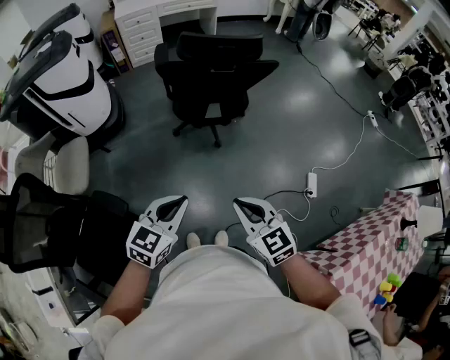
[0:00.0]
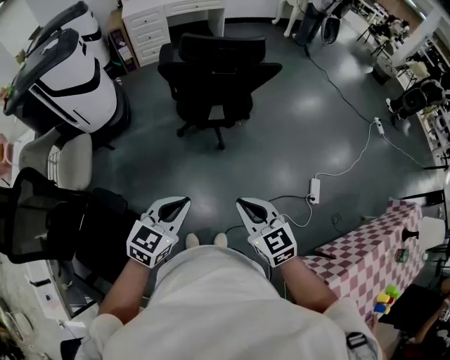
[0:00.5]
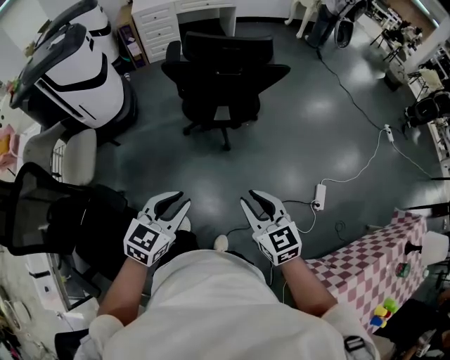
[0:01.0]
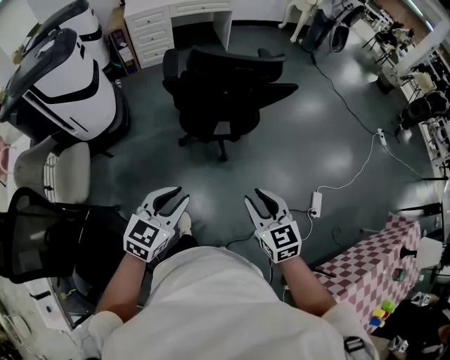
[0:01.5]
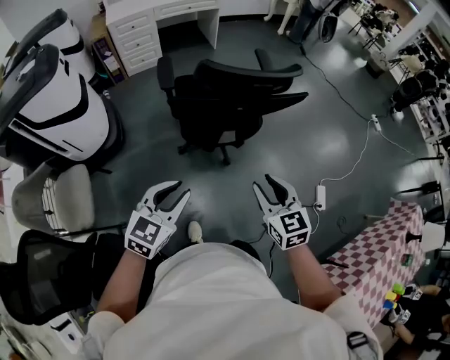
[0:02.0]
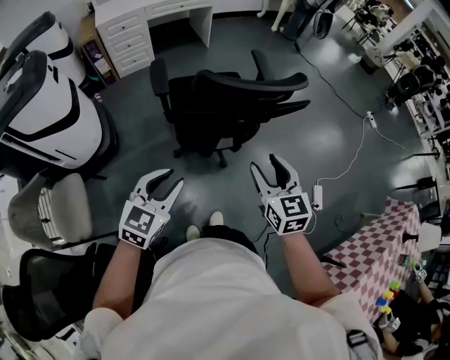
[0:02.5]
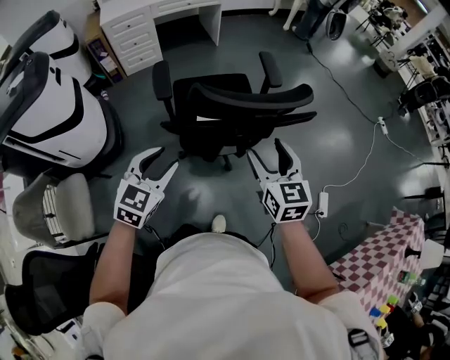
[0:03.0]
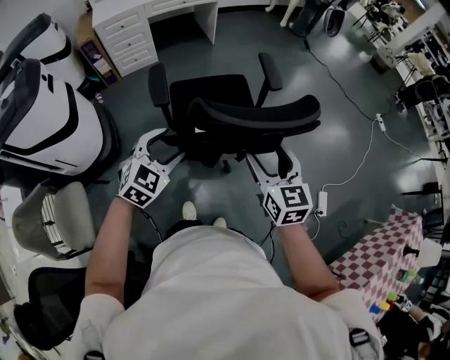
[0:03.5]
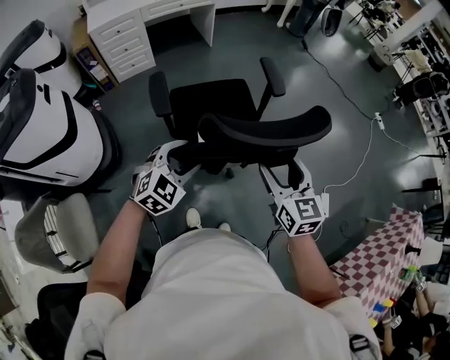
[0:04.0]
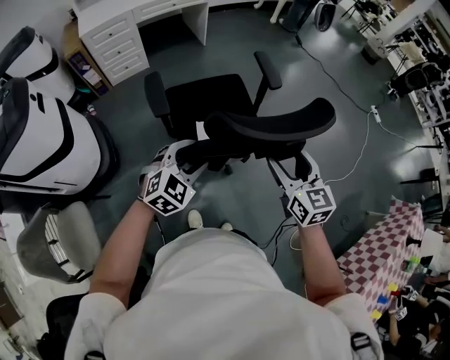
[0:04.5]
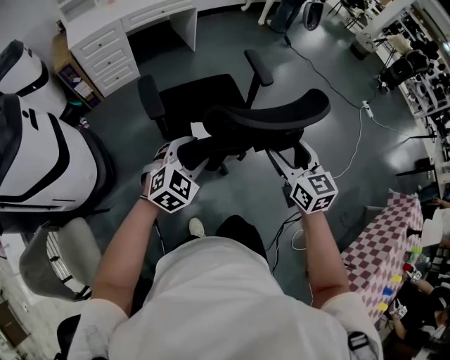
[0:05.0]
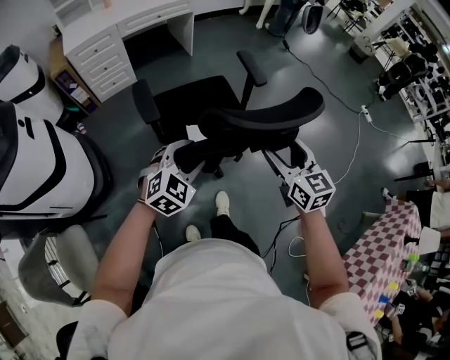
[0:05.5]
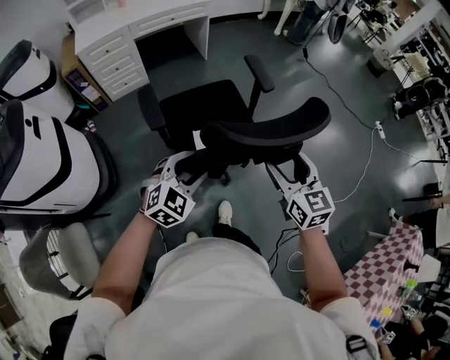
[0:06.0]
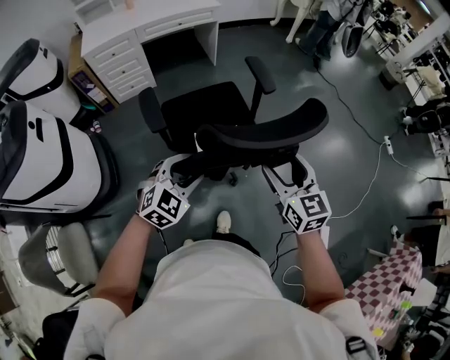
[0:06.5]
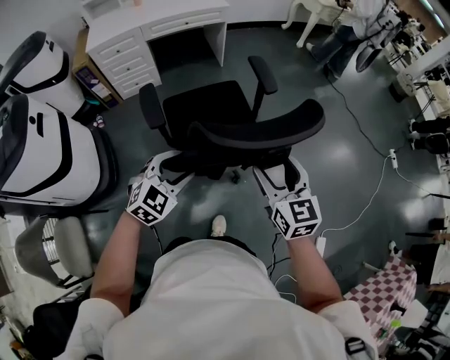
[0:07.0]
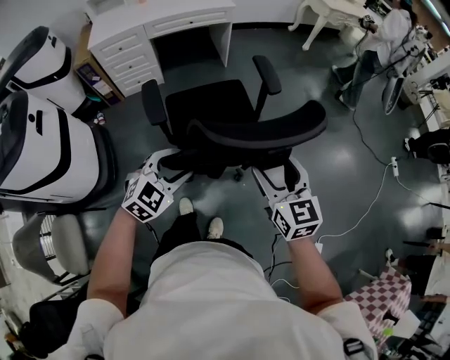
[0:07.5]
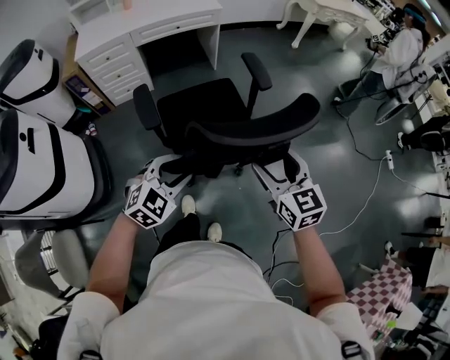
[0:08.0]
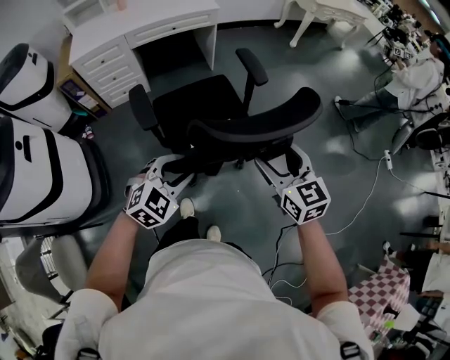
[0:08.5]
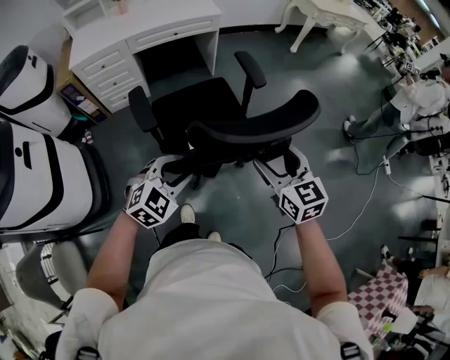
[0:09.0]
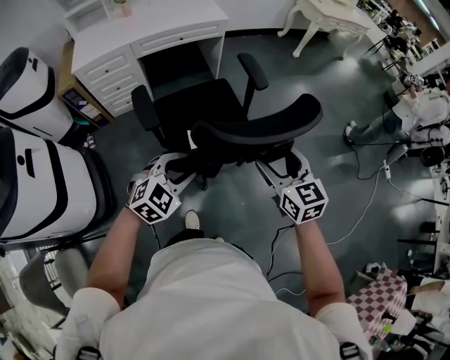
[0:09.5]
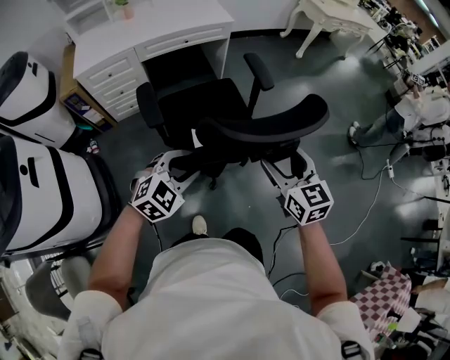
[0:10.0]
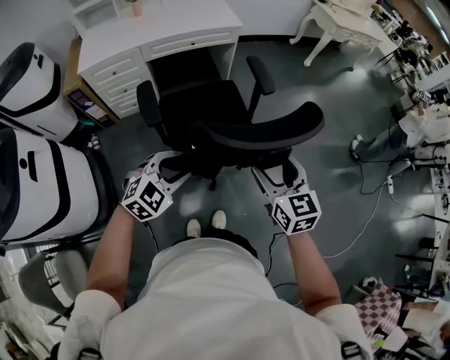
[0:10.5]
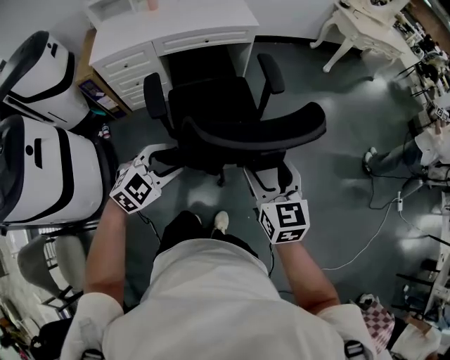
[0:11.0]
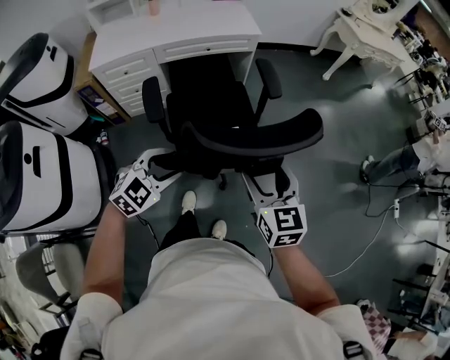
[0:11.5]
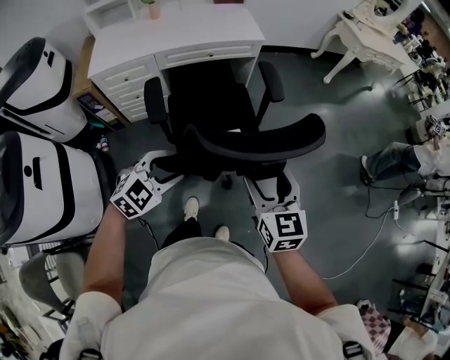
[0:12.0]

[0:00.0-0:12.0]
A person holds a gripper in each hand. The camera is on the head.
0:00.0 to 0:02.0: The left gripper shifts about 25 cm forward and to the left, and opens up. The right gripper shifts roughly 25 cm forward, and opens up.
0:02.0 to 0:04.0: Both grippers move forward, about 25 cm. The right gripper opens; the left gripper swivels approximately 30 degrees, and opens its fingers.
0:04.0 to 0:06.0: The grippers both shift forward by about 15 cm.
0:06.0 to 0:08.0: Both grippers travel together forward, some 15 cm.
0:08.0 to 0:10.0: Both grippers move forward and to the left, roughly 15 cm.
0:10.0 to 0:12.0: Both grippers move forward and to the left, about 15 cm.

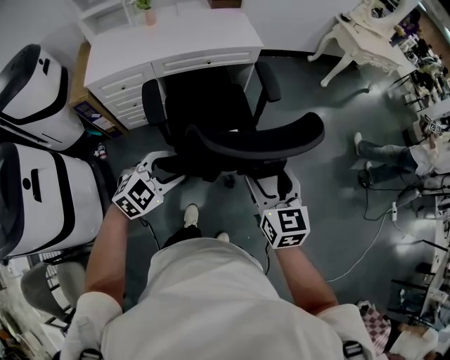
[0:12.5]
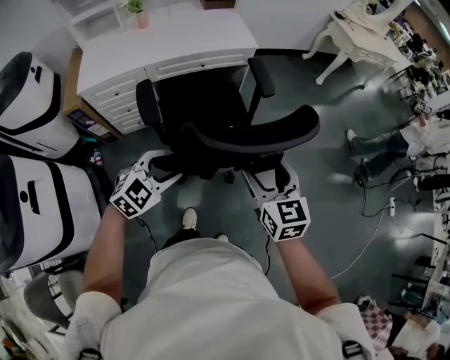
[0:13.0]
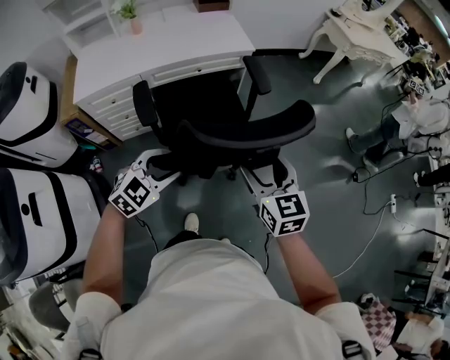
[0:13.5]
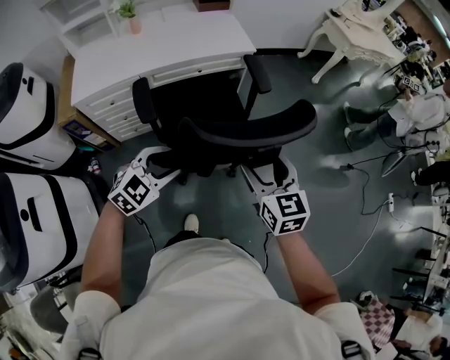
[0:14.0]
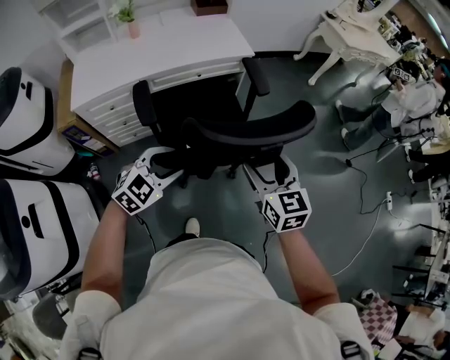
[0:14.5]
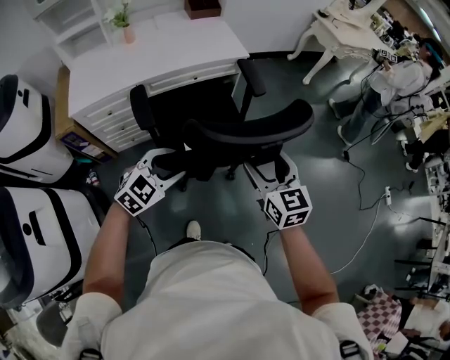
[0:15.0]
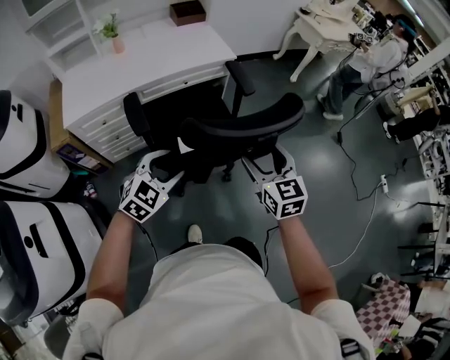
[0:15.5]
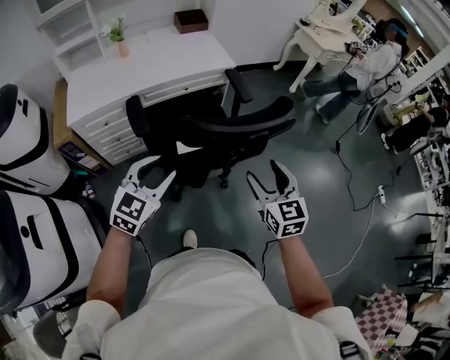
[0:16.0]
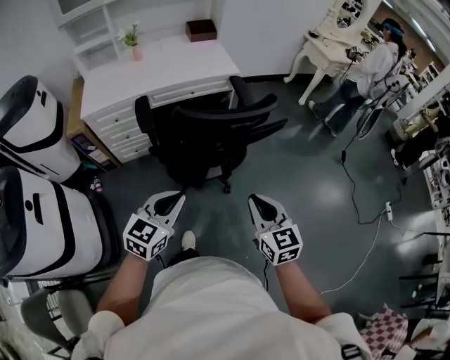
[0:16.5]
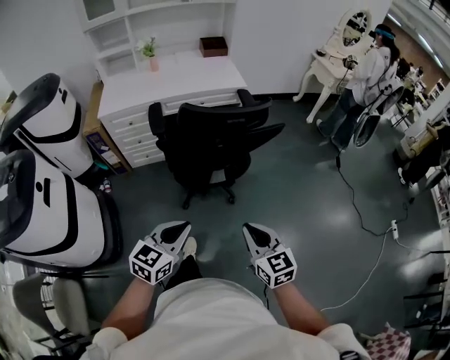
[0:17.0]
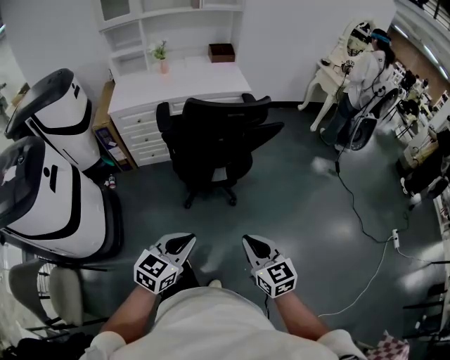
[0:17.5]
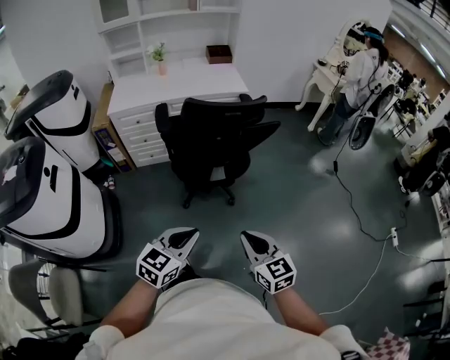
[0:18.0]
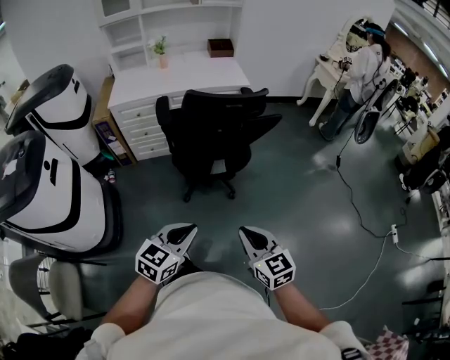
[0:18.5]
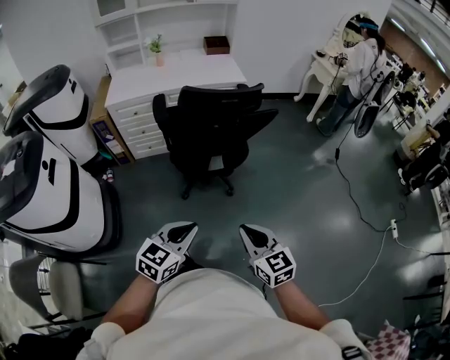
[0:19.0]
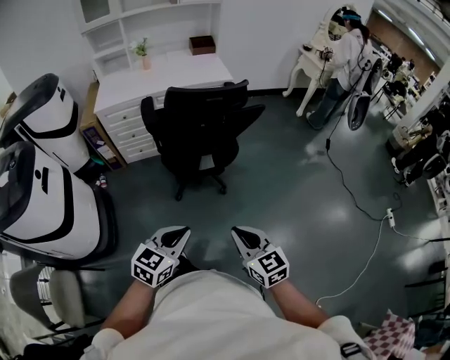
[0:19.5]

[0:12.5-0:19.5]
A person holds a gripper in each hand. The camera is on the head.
0:12.5 to 0:14.5: Both grippers move forward and to the left, some 10 cm.
0:14.5 to 0:16.0: The left gripper moves upward, roughly 5 cm, and rotates some 20 degrees, while the right gripper travels backward by roughly 5 cm.
0:16.0 to 0:17.5: The left gripper shifts roughly 35 cm backward and to the right, swivels about 20 degrees, and closes up. The right gripper goes roughly 30 cm backward, swivels some 20 degrees, and closes its fingers.
0:17.5 to 0:19.5: There are only small adjustments of the grippers.

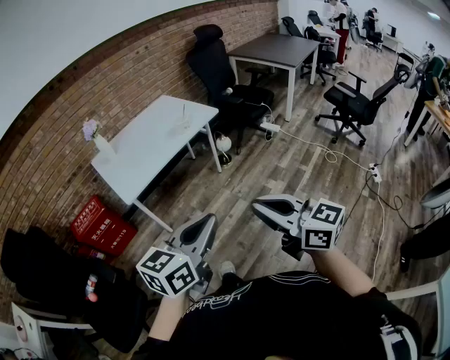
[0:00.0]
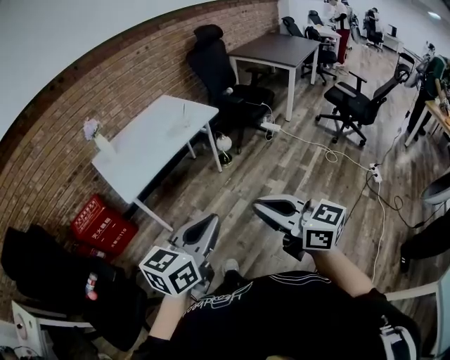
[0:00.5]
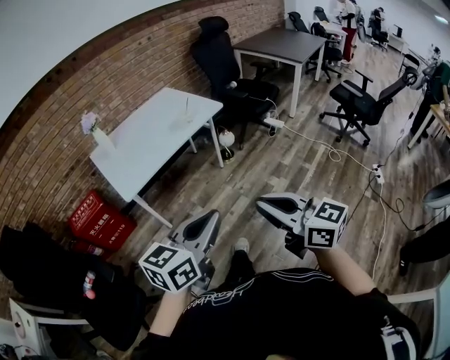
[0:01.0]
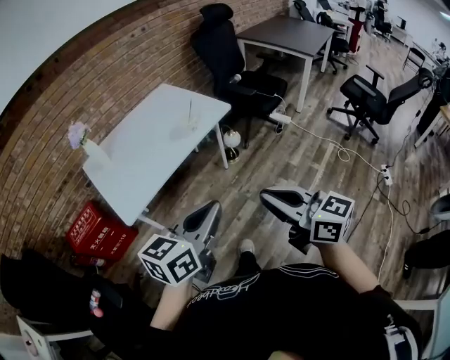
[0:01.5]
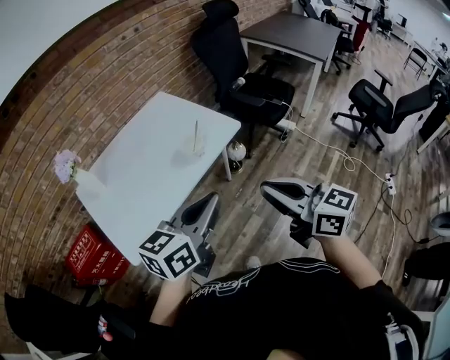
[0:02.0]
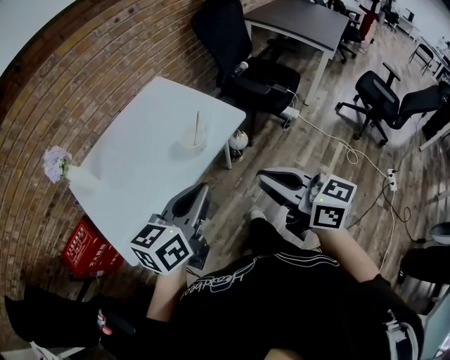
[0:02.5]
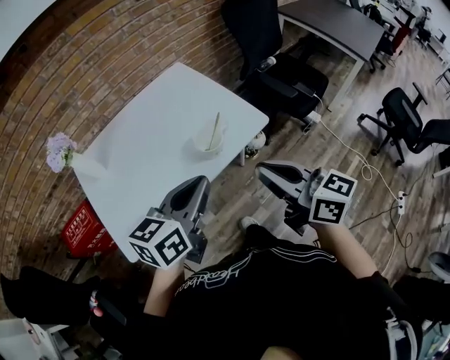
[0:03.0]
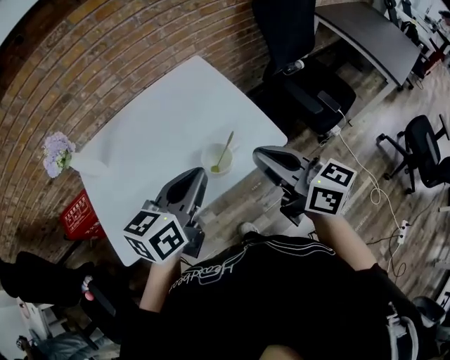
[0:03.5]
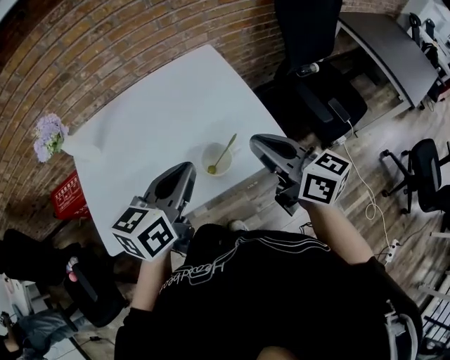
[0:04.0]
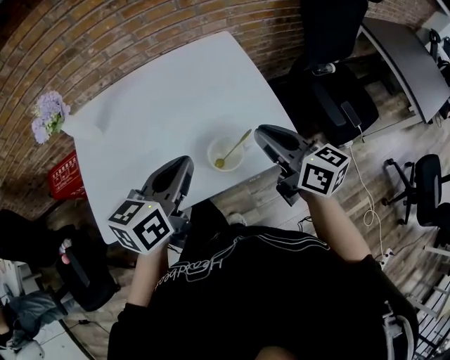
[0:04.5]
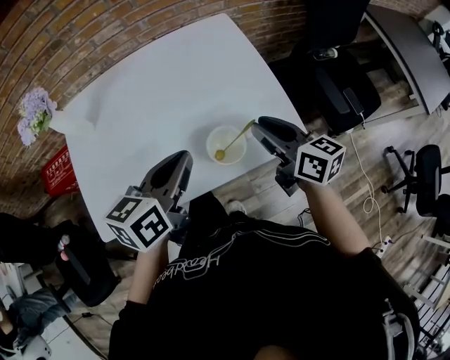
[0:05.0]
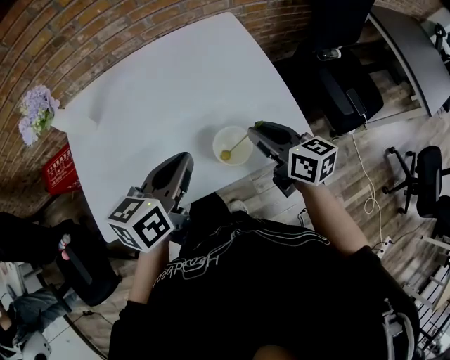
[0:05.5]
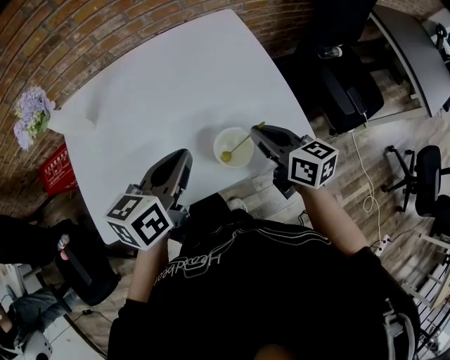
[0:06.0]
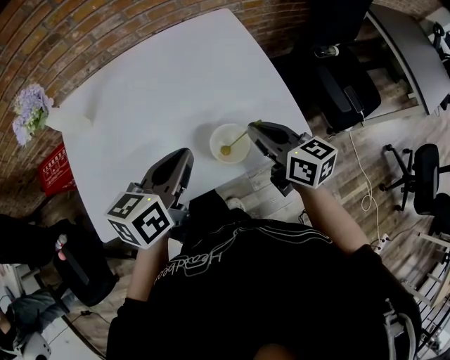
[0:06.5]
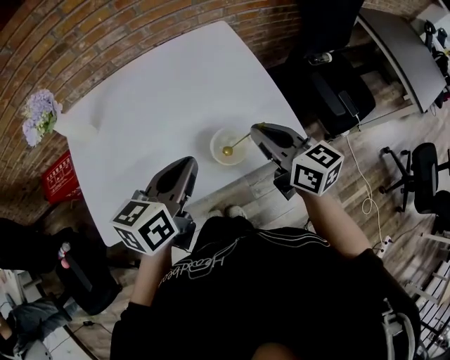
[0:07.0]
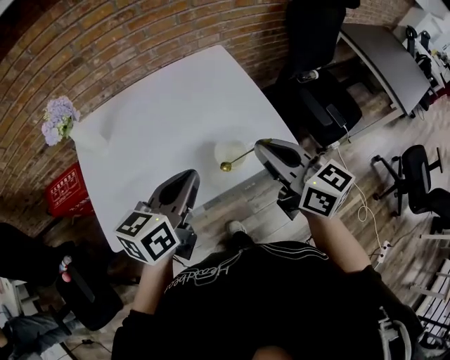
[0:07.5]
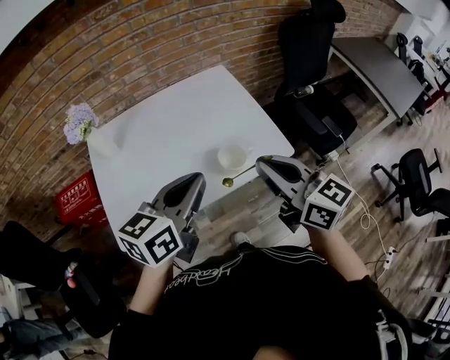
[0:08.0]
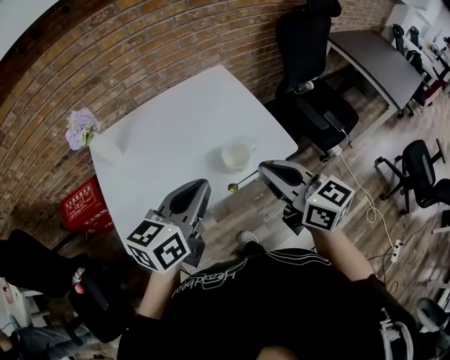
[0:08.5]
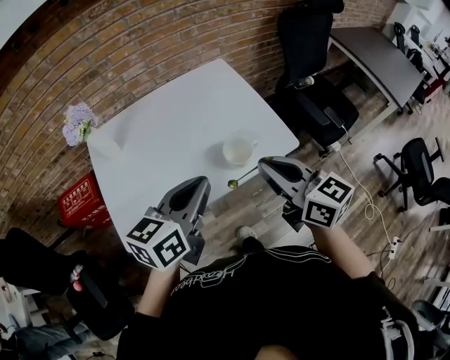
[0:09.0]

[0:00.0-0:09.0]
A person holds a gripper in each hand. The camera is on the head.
0:00.0 to 0:02.0: The pair of grippers is taken forward, some 40 cm.
0:02.0 to 0:04.5: The right gripper shifts by approximately 40 cm, and swivels some 20 degrees, while the left gripper moves about 35 cm, and rotates about 40 degrees.
0:04.5 to 0:07.0: The right gripper reaches about 10 cm downward, then returns.
0:07.0 to 0:09.0: The two grippers go roughly 15 cm backward and upward.
